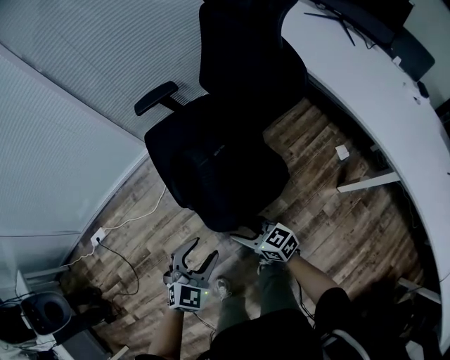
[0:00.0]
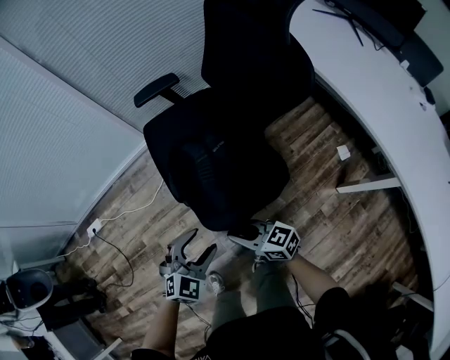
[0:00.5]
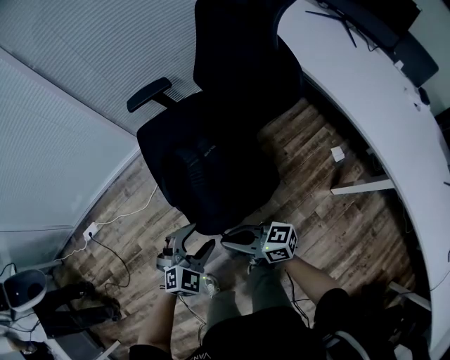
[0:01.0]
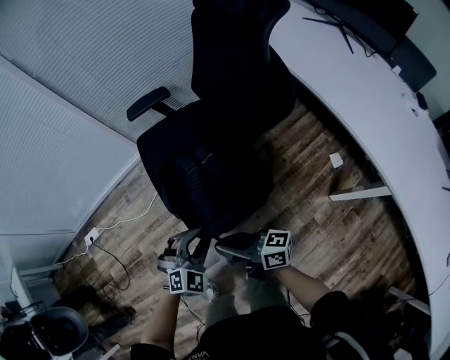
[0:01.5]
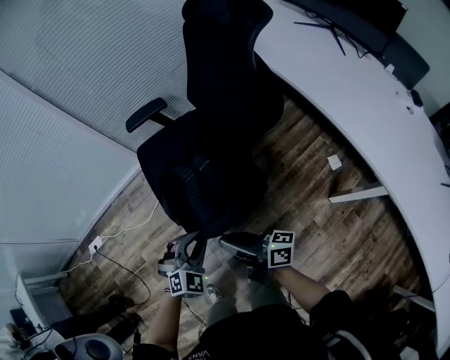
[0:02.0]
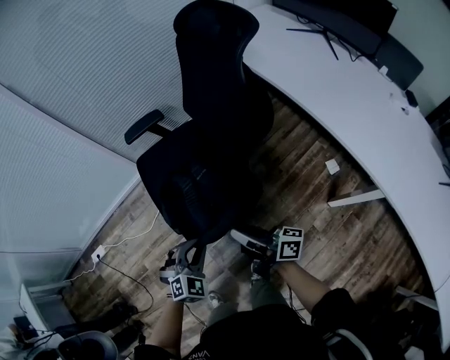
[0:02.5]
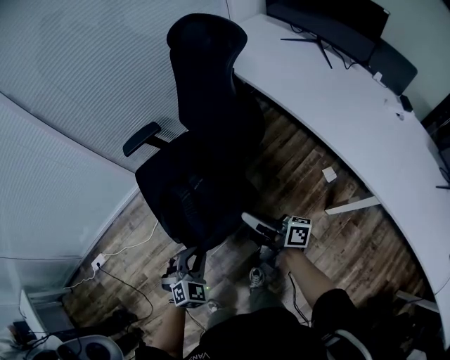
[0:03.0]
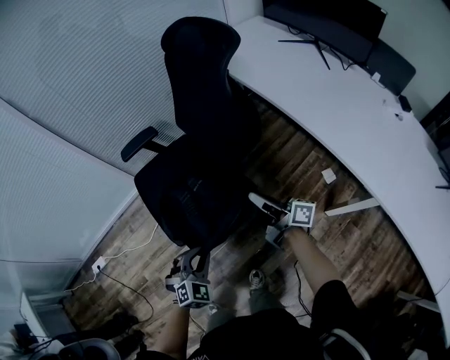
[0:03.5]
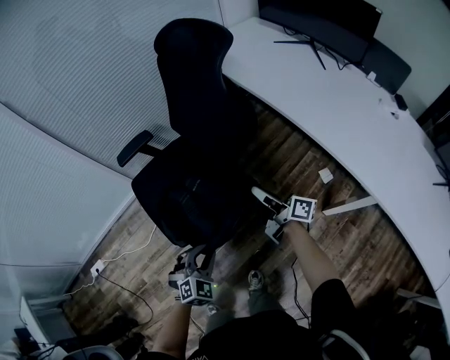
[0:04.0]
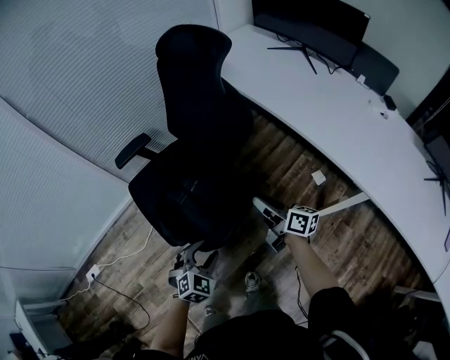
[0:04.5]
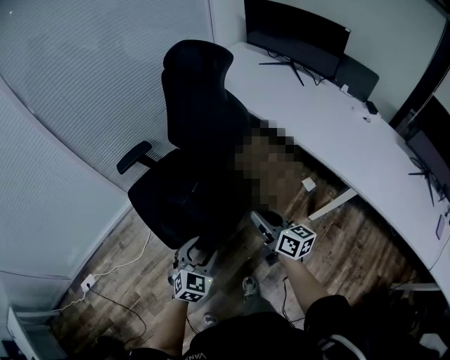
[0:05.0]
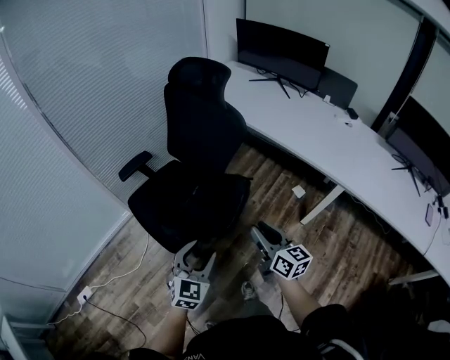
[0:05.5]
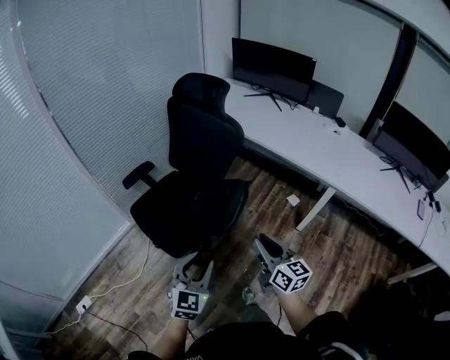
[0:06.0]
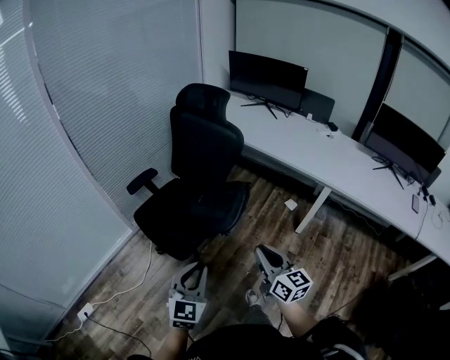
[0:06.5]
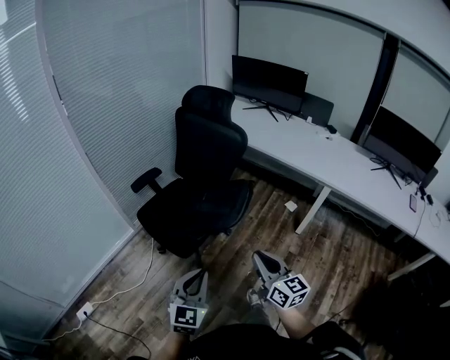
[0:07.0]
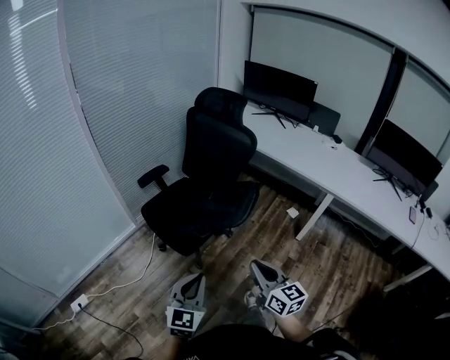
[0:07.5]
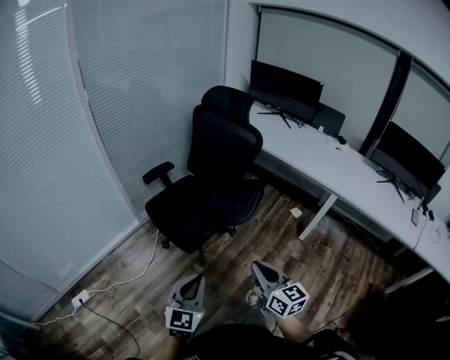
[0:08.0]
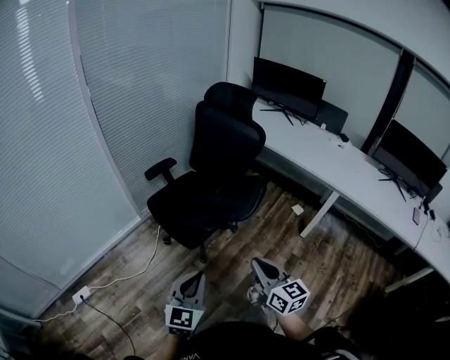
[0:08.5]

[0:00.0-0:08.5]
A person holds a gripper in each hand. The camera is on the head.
0:00.0 to 0:02.0: The left gripper goes approximately 10 cm to the right and forward, and closes up, while the right gripper travels upward and to the right by approximately 15 cm, tips its fingers upward by some 30 degrees, and closes up.
0:02.0 to 0:04.0: The right gripper shifts roughly 25 cm to the right and forward, and swivels some 20 degrees. The left gripper moves to the right, approximately 5 cm.
0:04.0 to 0:06.5: The right gripper shifts approximately 40 cm backward, and twists roughly 50 degrees counterclockwise, seen from behind. The left gripper travels backward, upward and to the left by roughly 40 cm, tilts its fingers roughly 30 degrees upward, and opens, then closes again.
0:06.5 to 0:08.5: Both grippers move backward and to the left, approximately 15 cm.

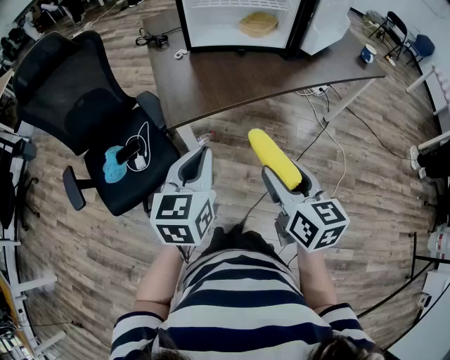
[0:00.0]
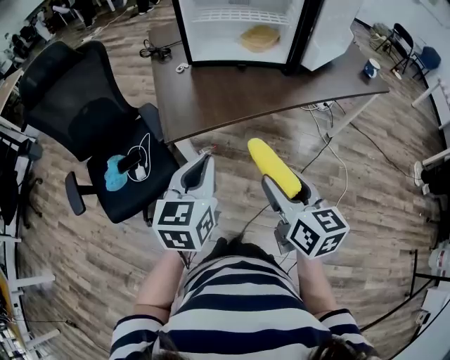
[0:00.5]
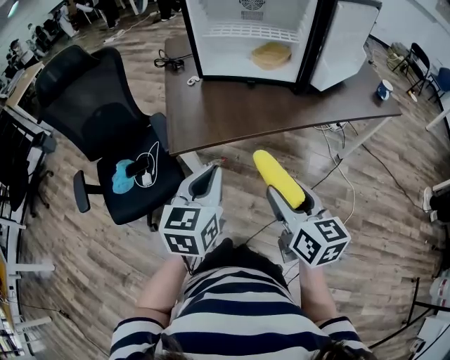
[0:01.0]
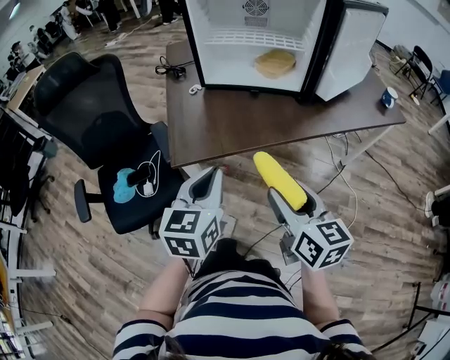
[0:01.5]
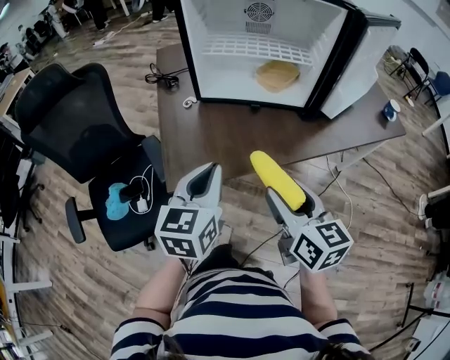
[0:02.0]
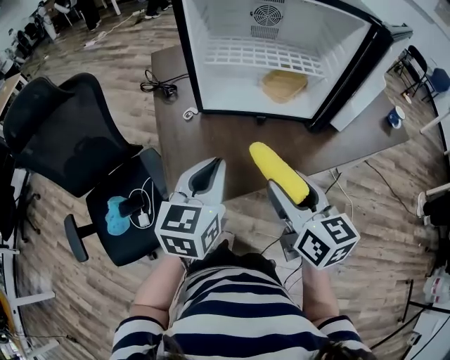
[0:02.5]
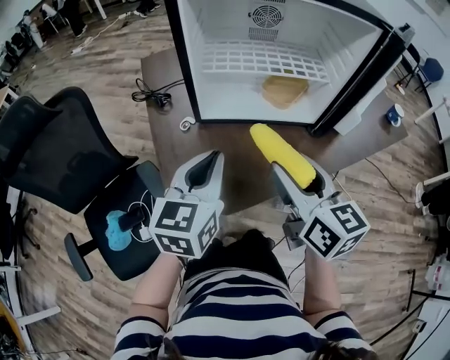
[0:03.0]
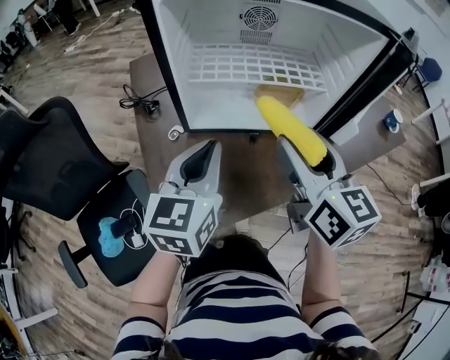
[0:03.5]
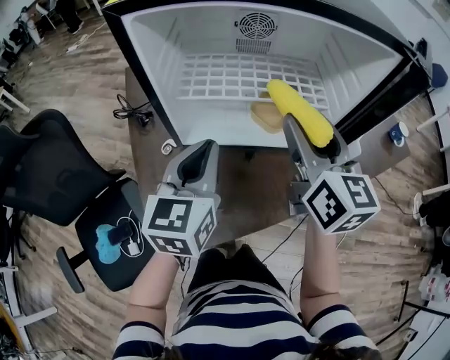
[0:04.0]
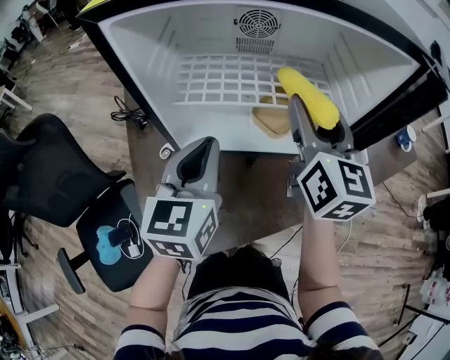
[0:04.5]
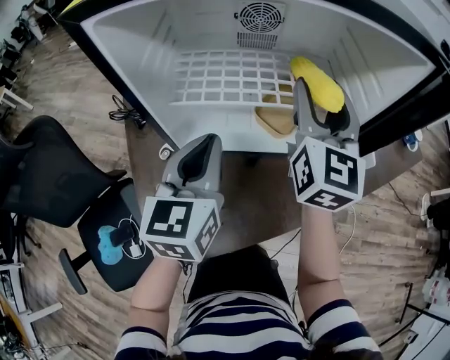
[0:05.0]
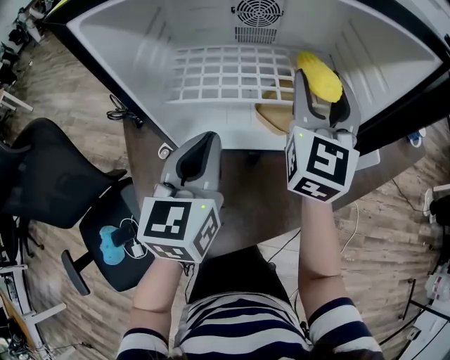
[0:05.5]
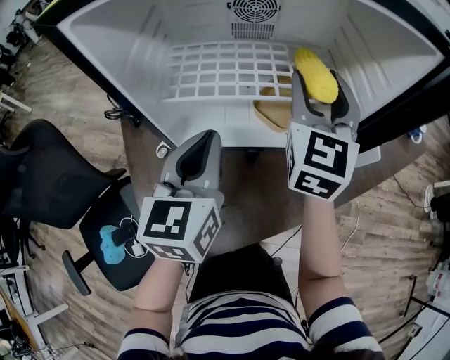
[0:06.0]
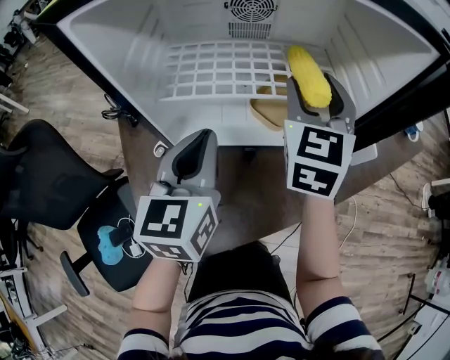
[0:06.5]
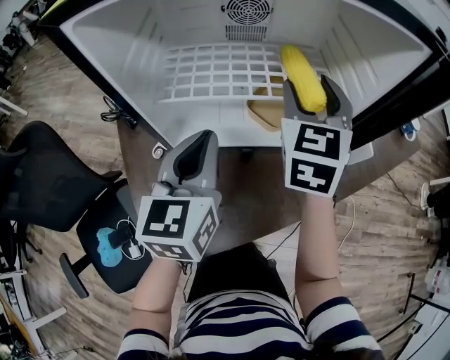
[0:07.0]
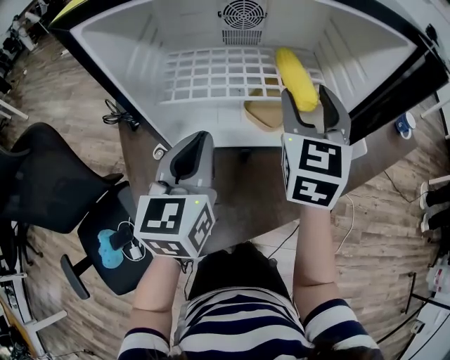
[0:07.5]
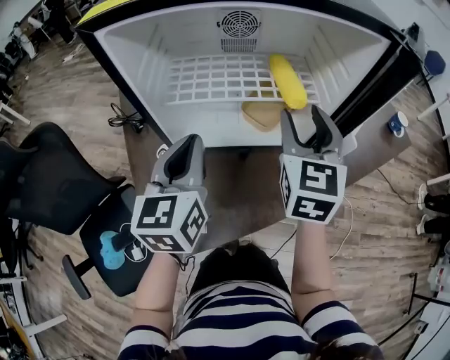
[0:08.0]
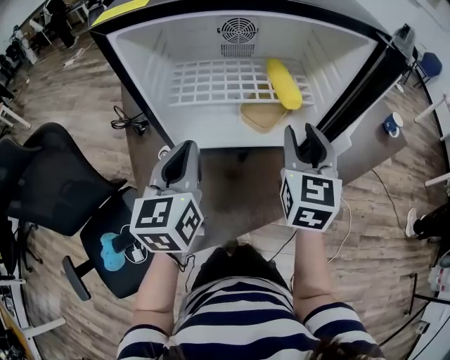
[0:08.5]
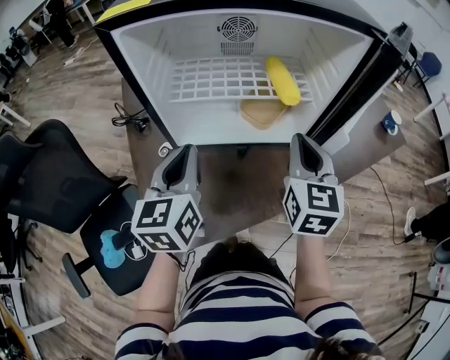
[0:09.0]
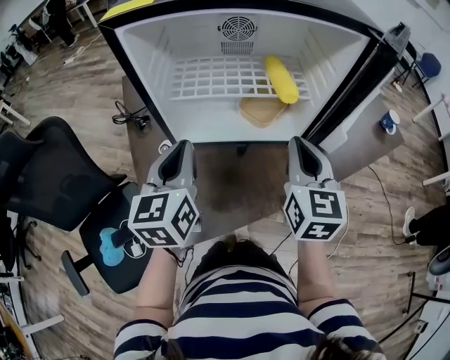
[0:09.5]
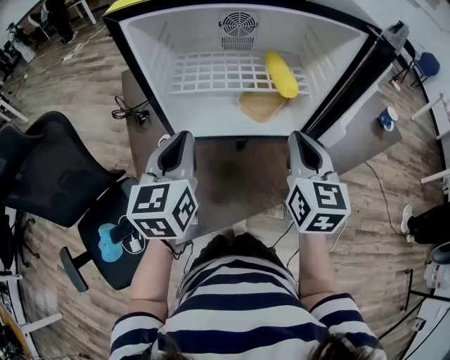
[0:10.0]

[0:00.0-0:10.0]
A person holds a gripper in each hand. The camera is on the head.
0:00.0 to 0:02.0: Both grippers travel together forward, about 20 cm.
0:02.0 to 0:04.0: Both grippers move forward, approximately 30 cm. The right gripper swivels about 20 degrees.
0:04.0 to 0:06.0: The left gripper goes some 5 cm forward; the right gripper heads forward, covering roughly 10 cm, and swivels some 30 degrees.
0:06.0 to 0:08.0: The left gripper ends up approximately 5 cm from where it was. Meanwhile the right gripper goes approximately 10 cm backward.
0:08.0 to 0:10.0: The right gripper is displaced backward by roughly 10 cm, and closes its fingers.

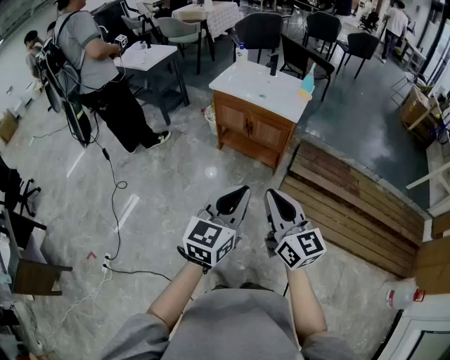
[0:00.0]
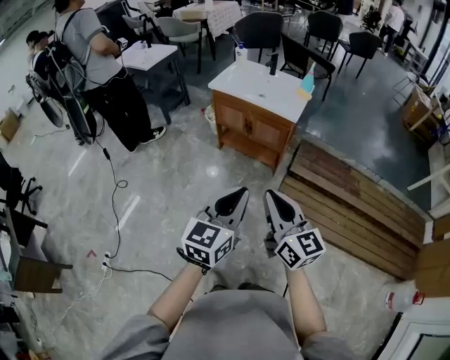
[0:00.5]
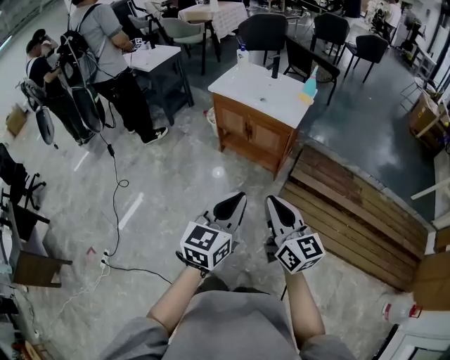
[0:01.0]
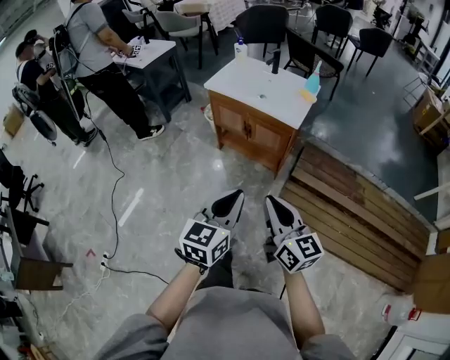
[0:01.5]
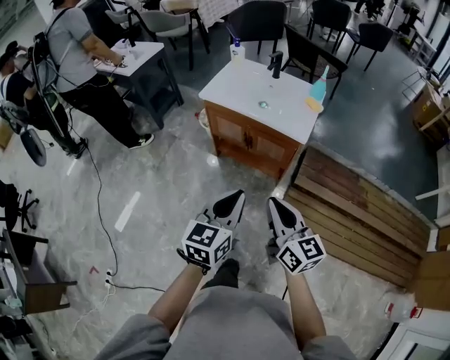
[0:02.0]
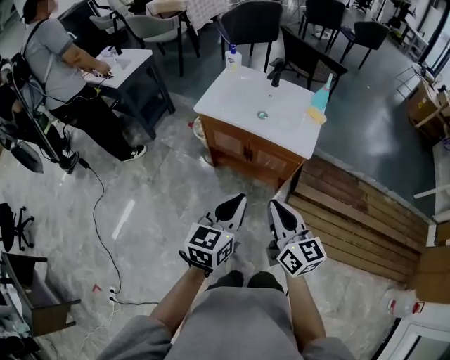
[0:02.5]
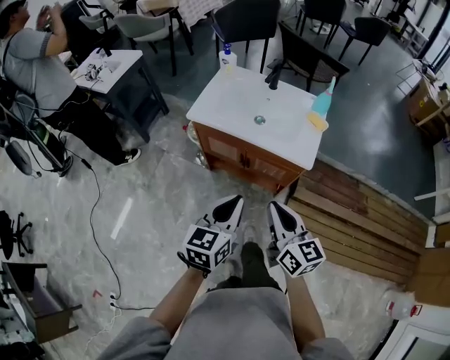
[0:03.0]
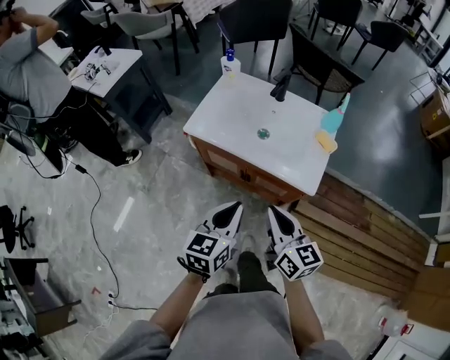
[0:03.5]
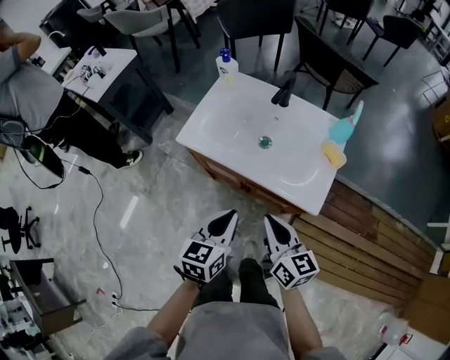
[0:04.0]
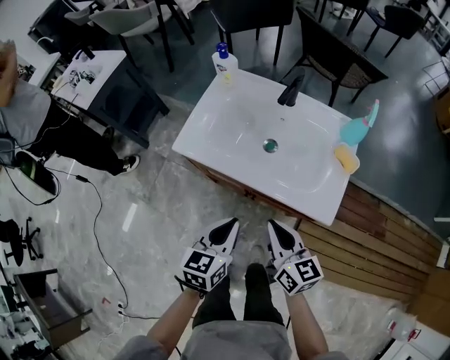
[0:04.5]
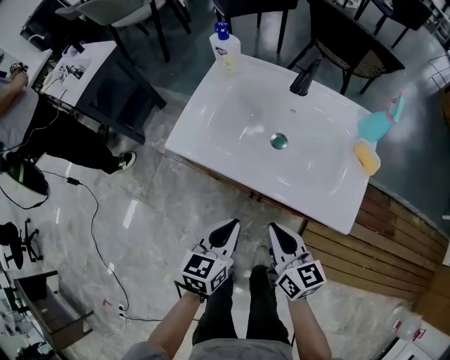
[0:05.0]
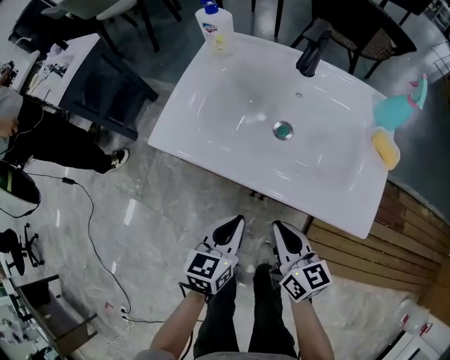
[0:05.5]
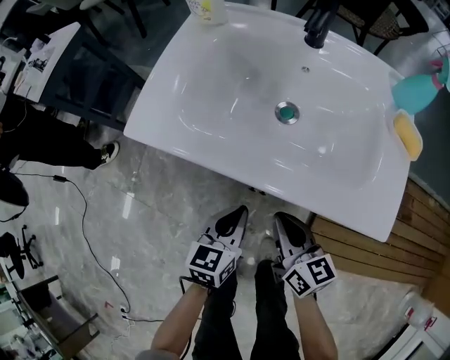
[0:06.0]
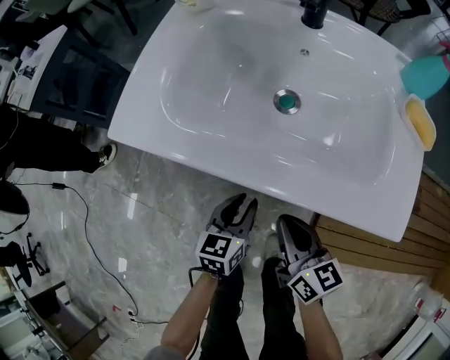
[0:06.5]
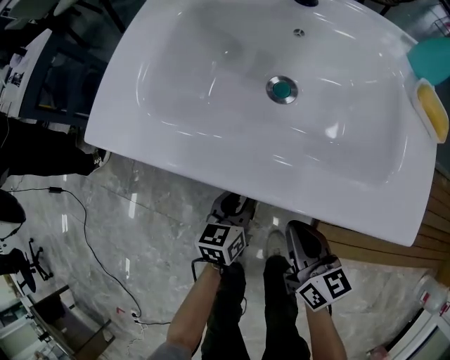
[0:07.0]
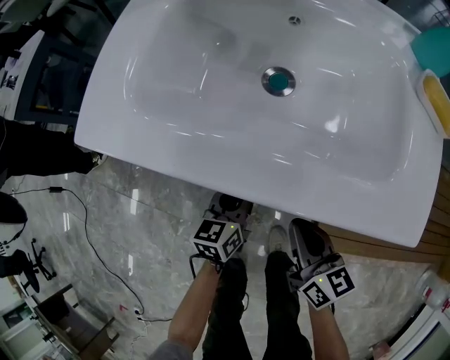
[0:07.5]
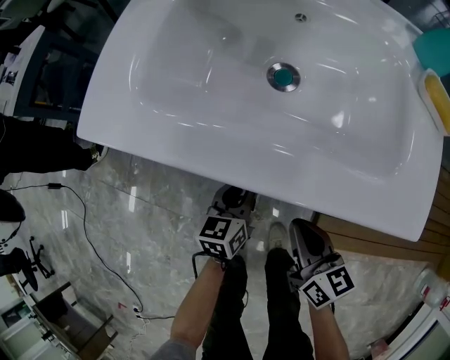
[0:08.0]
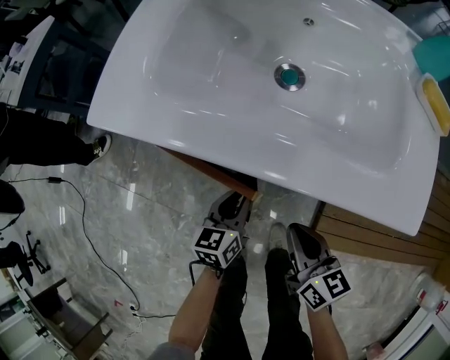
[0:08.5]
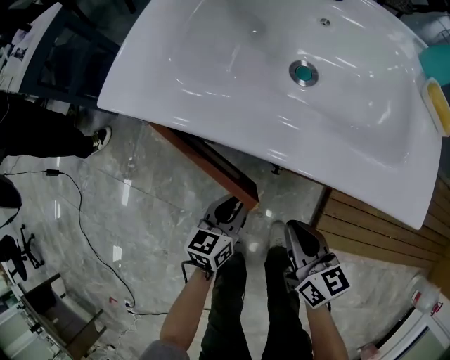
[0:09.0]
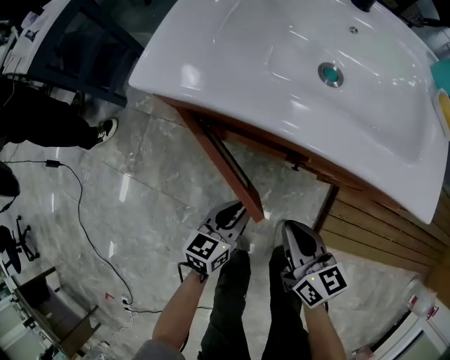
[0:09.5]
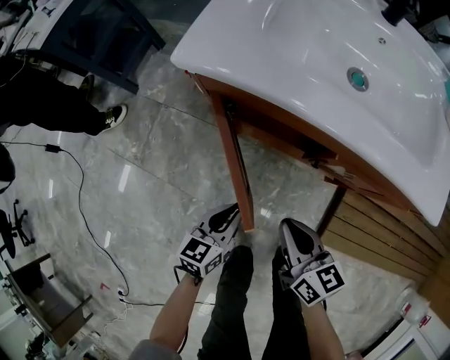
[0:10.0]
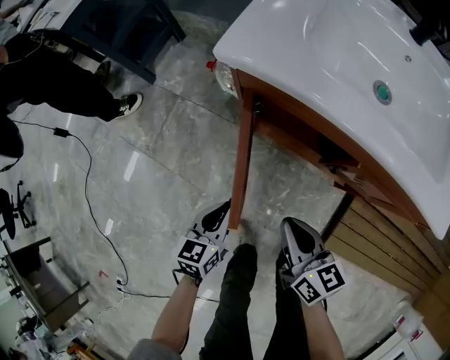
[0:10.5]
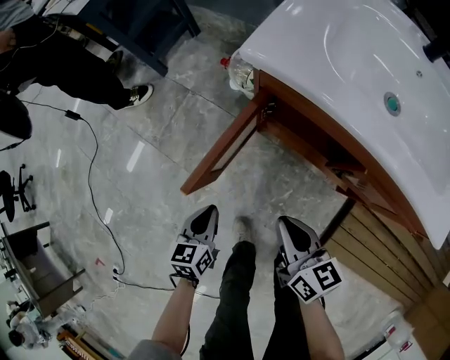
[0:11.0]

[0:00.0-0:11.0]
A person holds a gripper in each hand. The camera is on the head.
0:00.0 to 0:02.0: The grippers both shift forward by some 25 cm.
0:02.0 to 0:03.5: The grippers both shift forward by roughly 25 cm.
0:03.5 to 0:05.5: The two grippers go roughly 30 cm downward and forward.
0:05.5 to 0:07.5: The grippers both shift downward by some 15 cm.
0:07.5 to 0:09.0: The left gripper shifts roughly 10 cm backward and to the left; the right gripper travels to the left by some 5 cm.
0:09.0 to 0:11.0: The left gripper heads to the left and backward, covering about 25 cm, and rotates some 30 degrees. The right gripper goes approximately 15 cm to the left.
